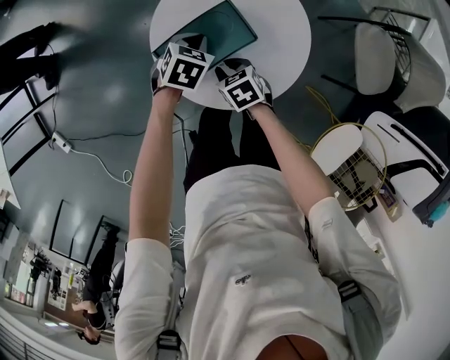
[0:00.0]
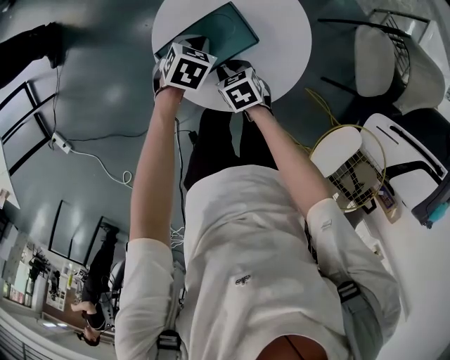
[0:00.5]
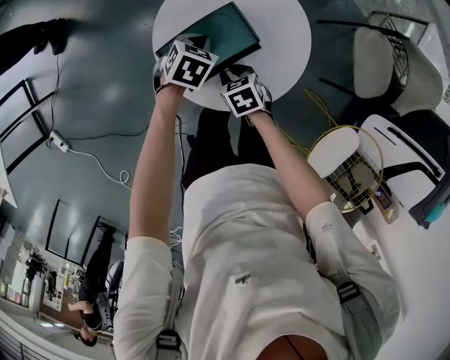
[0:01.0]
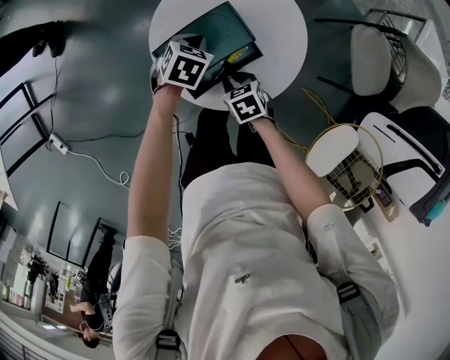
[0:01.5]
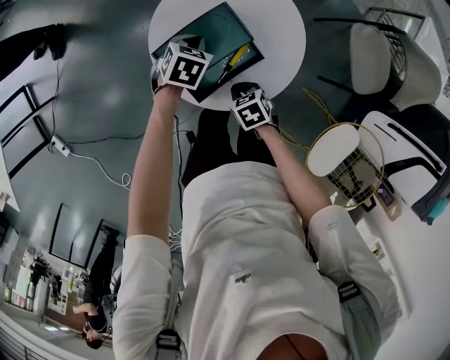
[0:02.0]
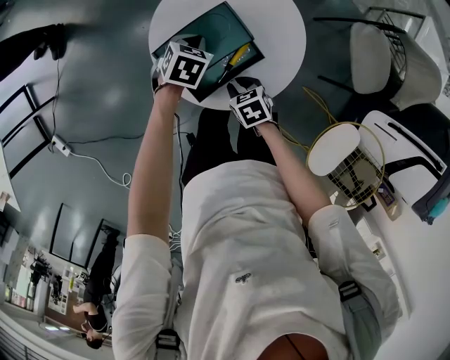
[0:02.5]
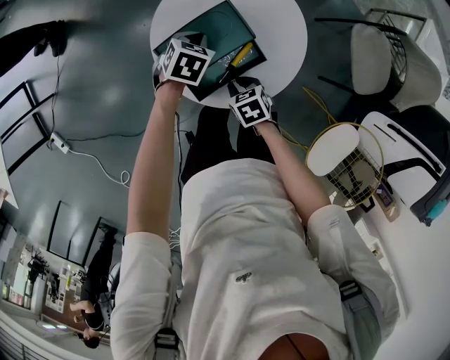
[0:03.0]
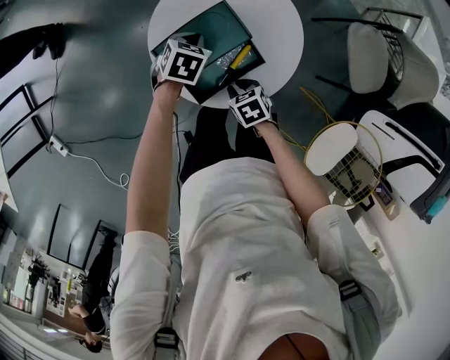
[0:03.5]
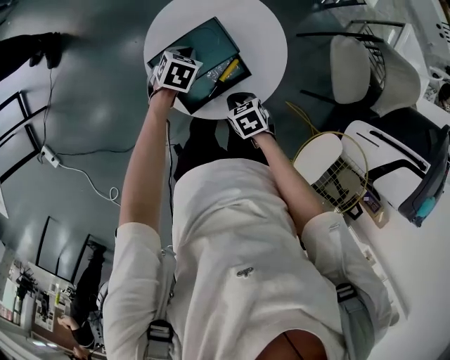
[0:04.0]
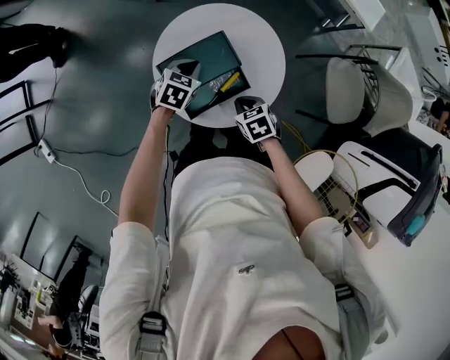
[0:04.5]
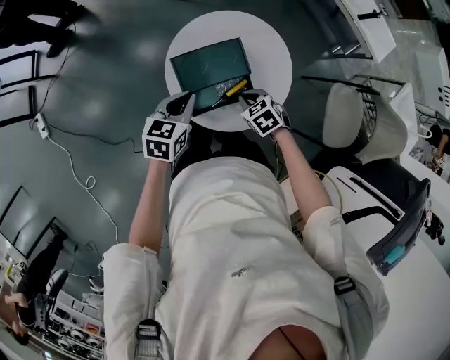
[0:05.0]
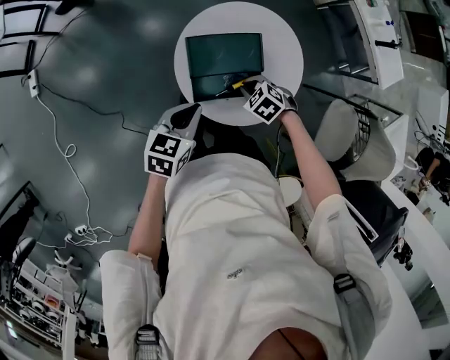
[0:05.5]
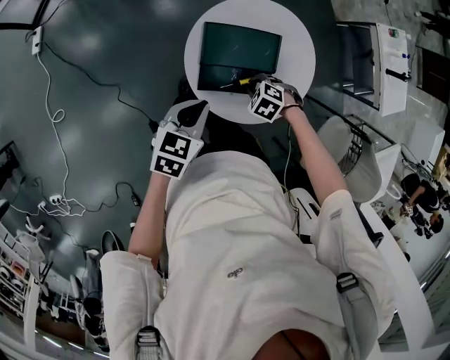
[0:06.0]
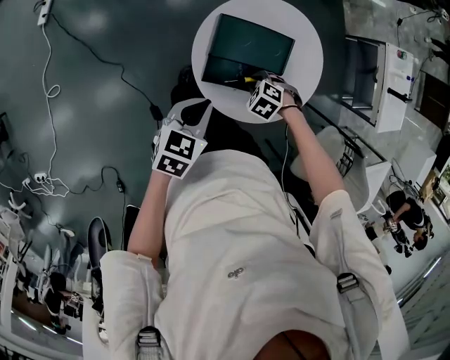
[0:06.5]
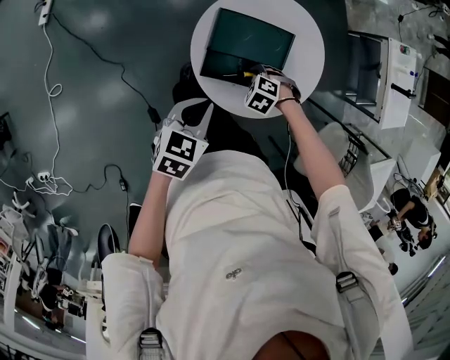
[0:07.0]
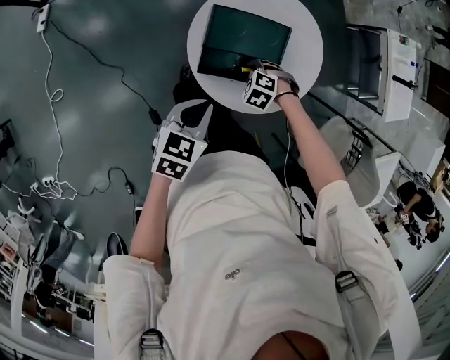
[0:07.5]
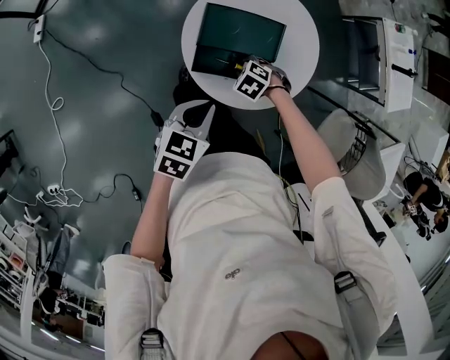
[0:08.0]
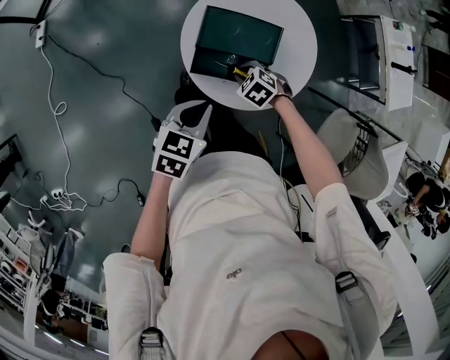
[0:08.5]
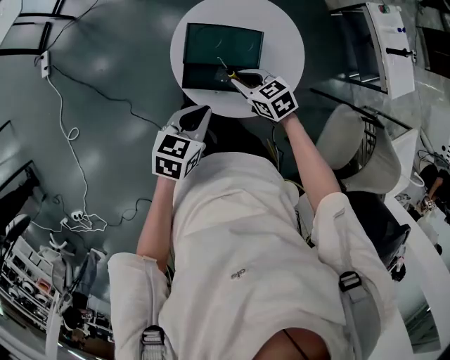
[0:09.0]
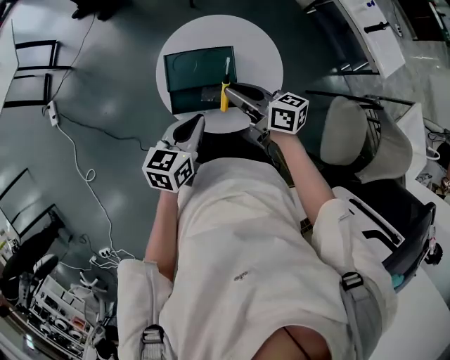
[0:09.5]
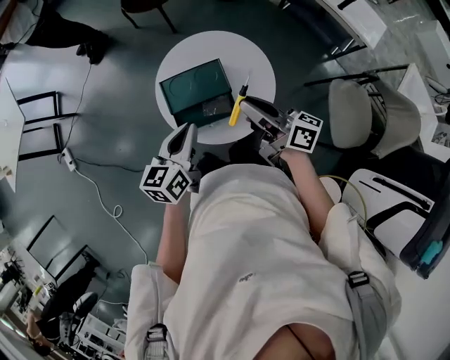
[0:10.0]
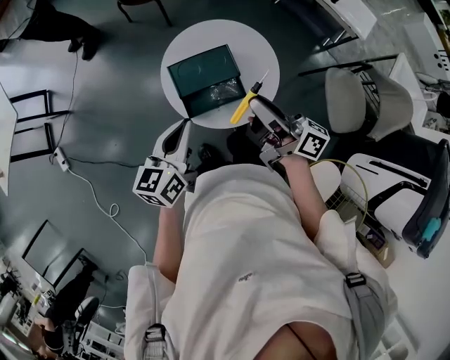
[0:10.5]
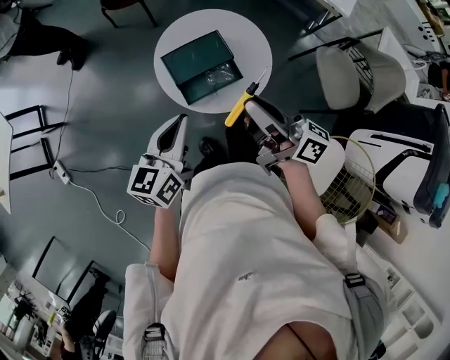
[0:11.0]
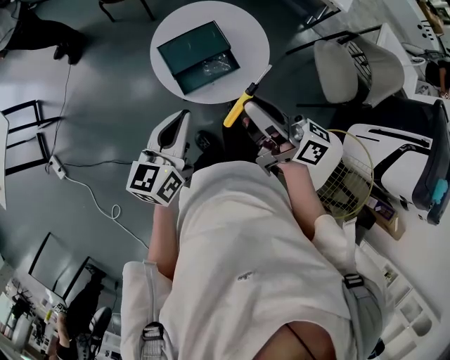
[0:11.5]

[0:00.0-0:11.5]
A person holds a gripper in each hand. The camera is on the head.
0:00.0 to 0:02.0: The right gripper travels backward by about 5 cm, and closes.
0:02.0 to 0:04.0: There are only small adjustments of the grippers.
0:04.0 to 0:06.0: The right gripper ends up about 5 cm from where it was, and twists roughly 80 degrees counterclockwise, seen from behind, while the left gripper shifts by about 25 cm, and turns by about 40 degrees.
0:06.0 to 0:07.5: There are only small adjustments of the grippers.
0:07.5 to 0:09.5: The right gripper goes some 25 cm upward, and points its fingers about 70 degrees further upward. The left gripper moves approximately 10 cm.
0:09.5 to 0:11.5: The left gripper heads to the left, upward and backward, covering approximately 15 cm, and turns by approximately 20 degrees, while the right gripper moves backward and upward, some 20 cm, and rotates approximately 40 degrees.

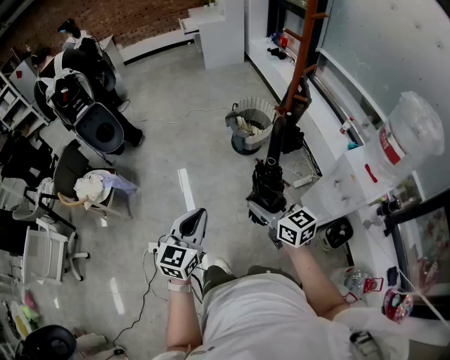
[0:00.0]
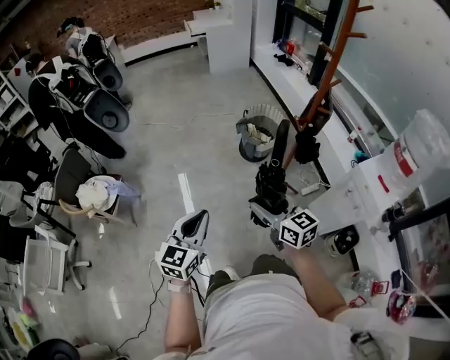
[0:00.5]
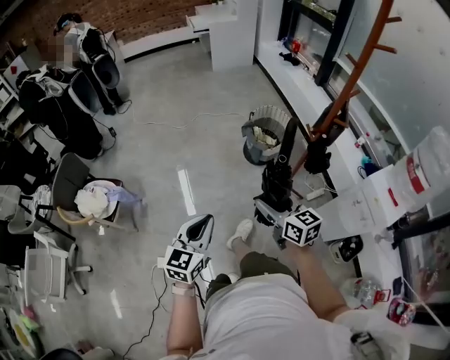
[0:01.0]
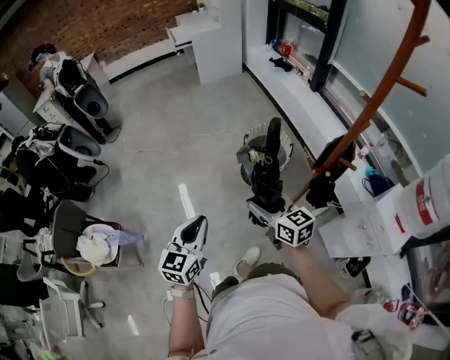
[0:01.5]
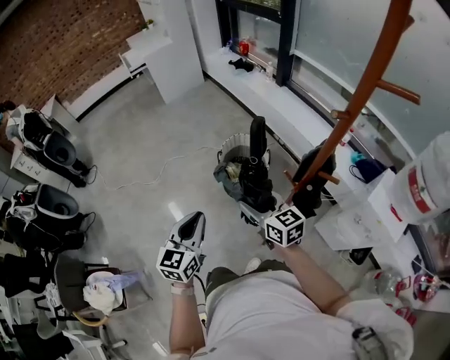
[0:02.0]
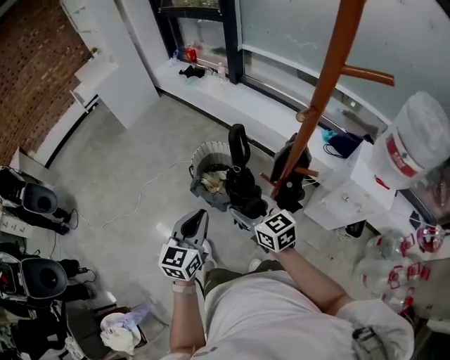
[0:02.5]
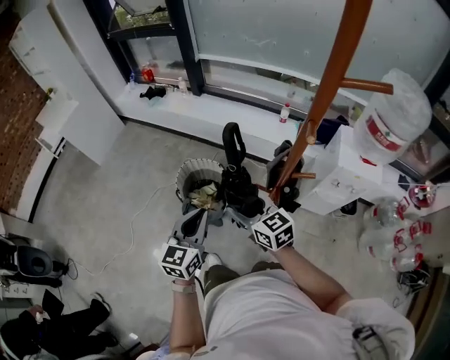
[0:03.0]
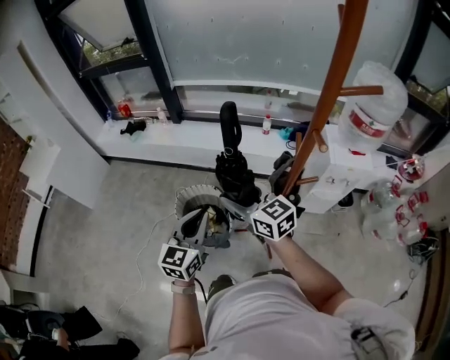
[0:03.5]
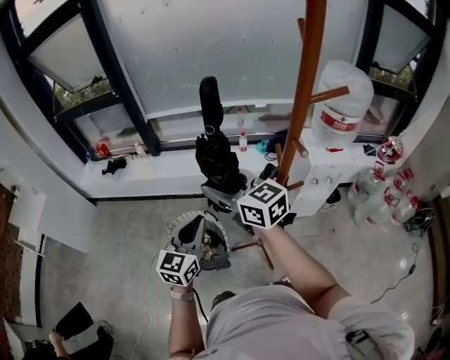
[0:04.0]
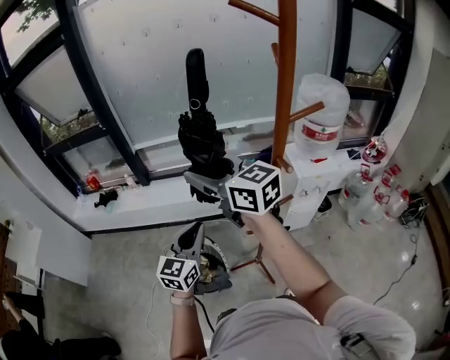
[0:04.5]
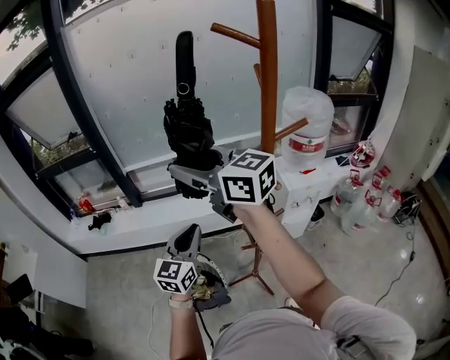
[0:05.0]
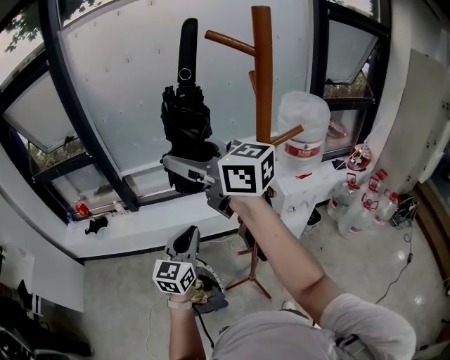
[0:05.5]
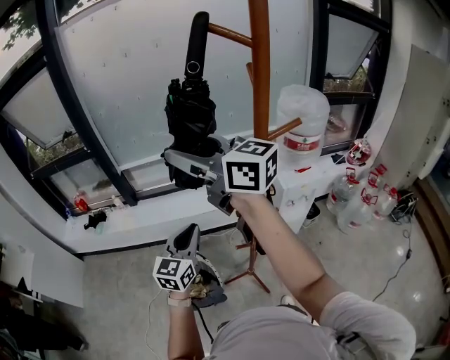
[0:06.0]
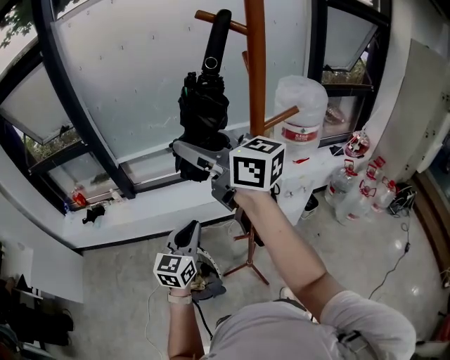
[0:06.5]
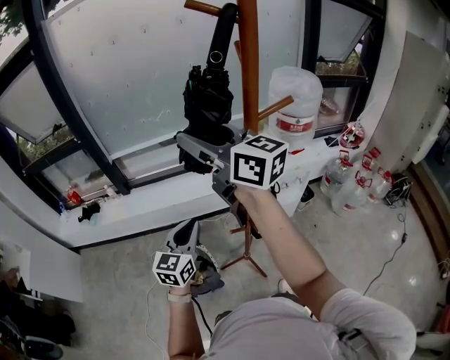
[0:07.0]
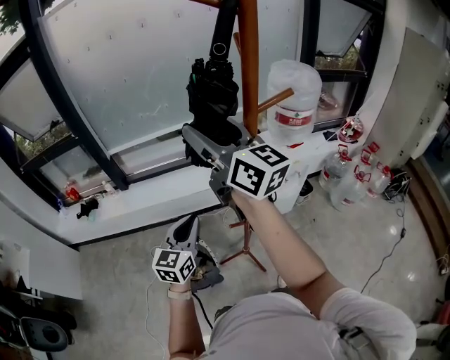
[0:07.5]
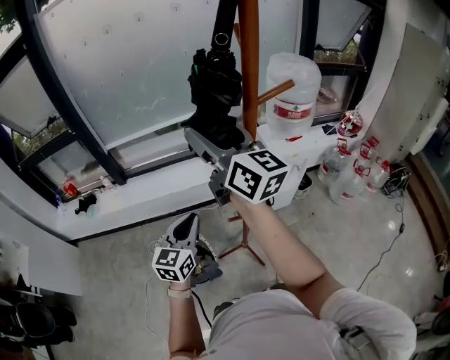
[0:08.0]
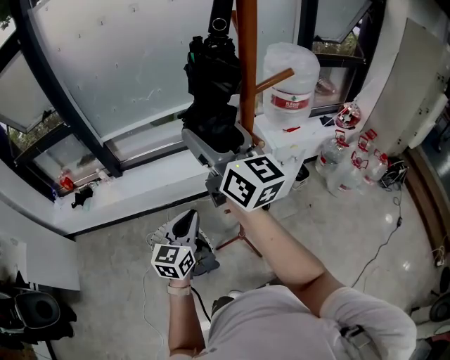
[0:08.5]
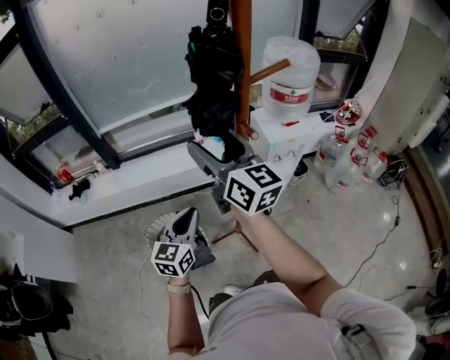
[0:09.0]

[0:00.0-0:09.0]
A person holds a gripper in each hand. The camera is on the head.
0:00.0 to 0:02.0: Both grippers are carried forward, some 50 cm.
0:02.0 to 0:04.5: The left gripper ends up roughly 35 cm from where it was, and turns by roughly 70 degrees; the right gripper shifts approximately 30 cm upward, and rotates some 50 degrees.
0:04.5 to 0:07.0: The right gripper goes some 10 cm upward and to the right.
0:07.0 to 0:09.0: The right gripper heads downward, covering approximately 10 cm, while the left gripper changes place by about 5 cm.

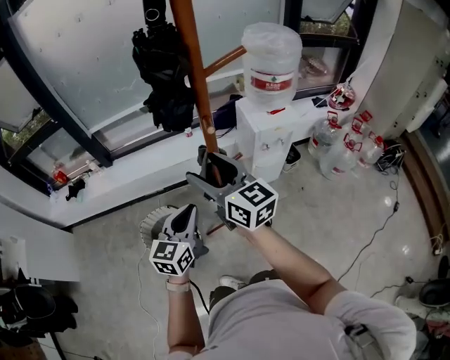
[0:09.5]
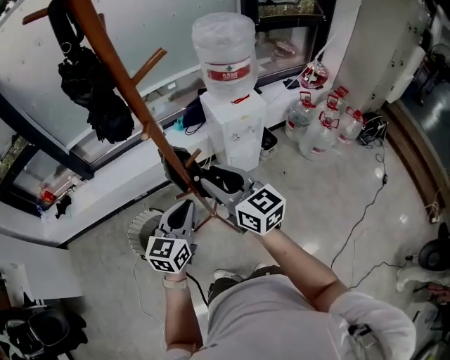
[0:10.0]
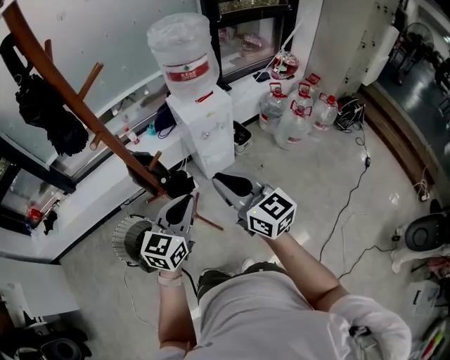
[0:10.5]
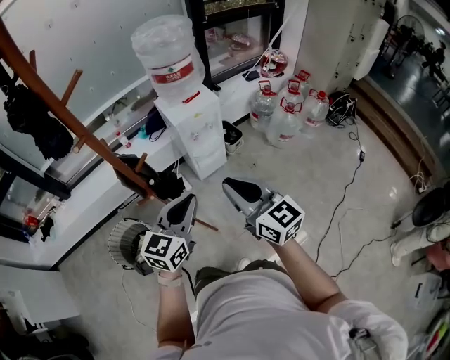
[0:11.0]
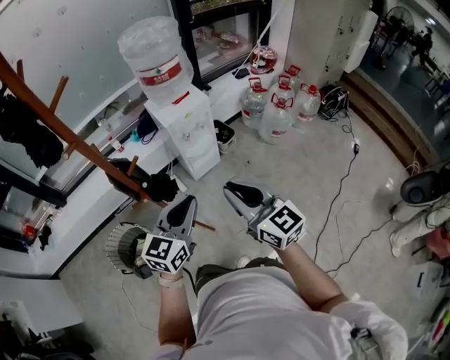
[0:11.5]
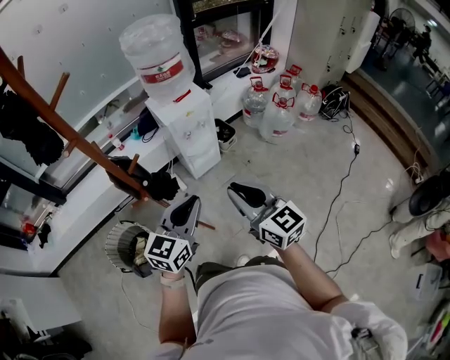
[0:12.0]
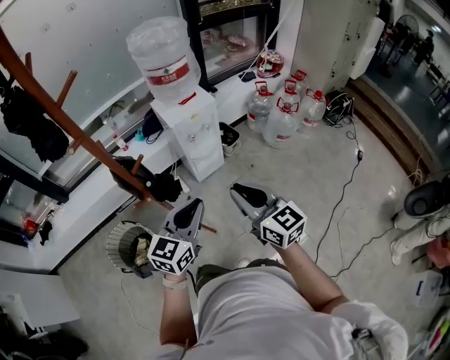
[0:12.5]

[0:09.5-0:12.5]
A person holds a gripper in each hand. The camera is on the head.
0:09.5 to 0:11.0: The right gripper travels to the right and backward by approximately 35 cm, and closes, while the left gripper goes approximately 25 cm to the right, and changes its angle by approximately 20 degrees.
0:11.0 to 0:12.5: The grippers move only a little.

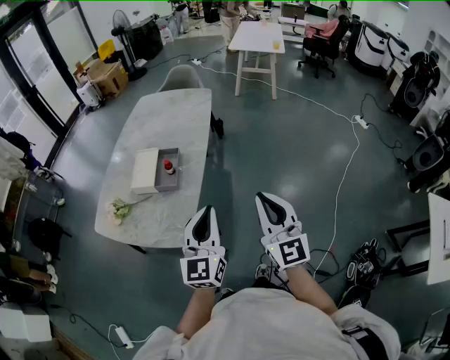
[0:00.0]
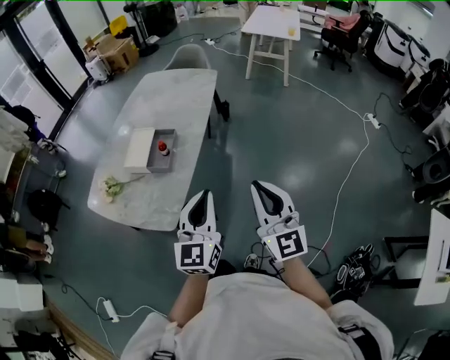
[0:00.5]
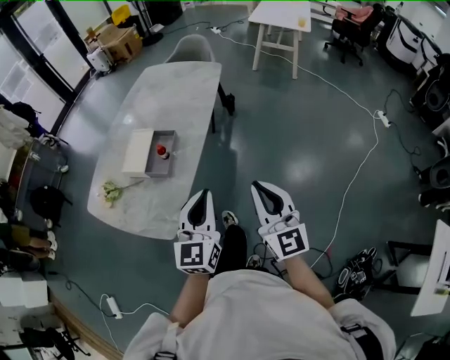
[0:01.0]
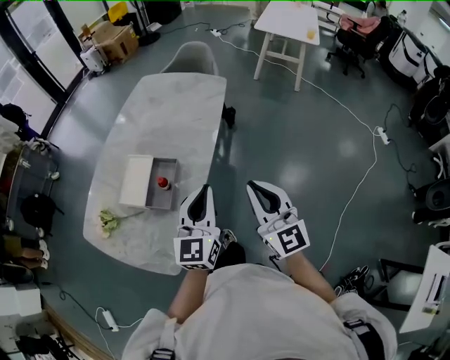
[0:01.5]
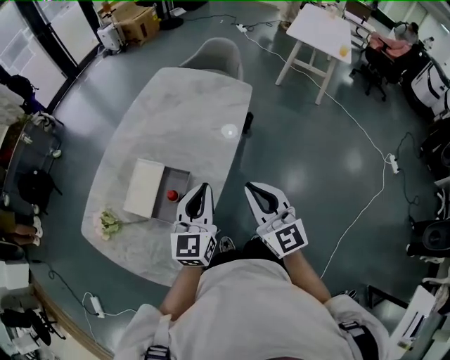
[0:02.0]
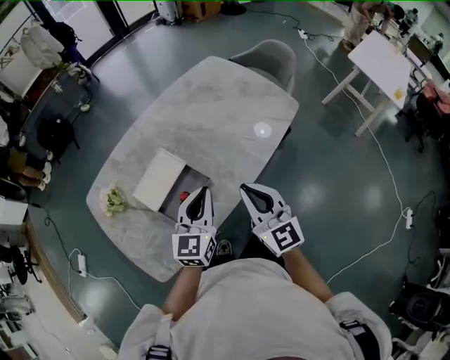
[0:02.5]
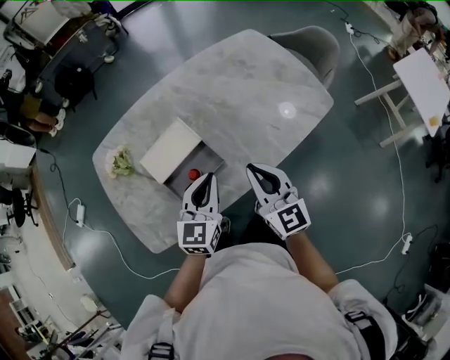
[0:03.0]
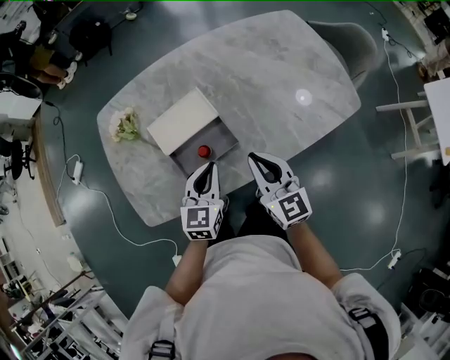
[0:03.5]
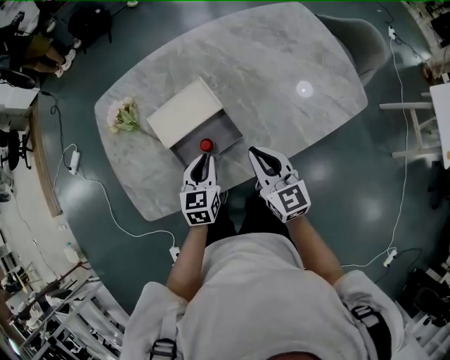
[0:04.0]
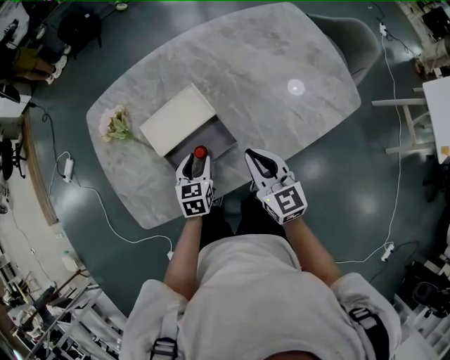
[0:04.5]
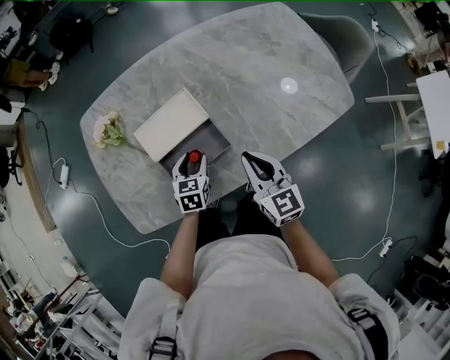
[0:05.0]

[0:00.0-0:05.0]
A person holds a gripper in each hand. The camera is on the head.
0:00.0 to 0:02.5: The two grippers travel together, about 50 cm. The right gripper rotates approximately 50 degrees. The left gripper rotates about 30 degrees.
0:02.5 to 0:05.0: The left gripper heads downward, covering about 25 cm, tilts its fingers some 30 degrees downward, and opens; the right gripper shifts approximately 15 cm downward and forward, and turns by roughly 30 degrees.
